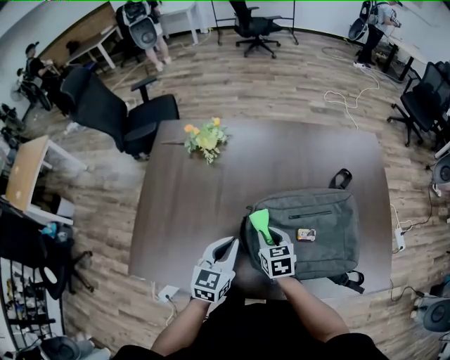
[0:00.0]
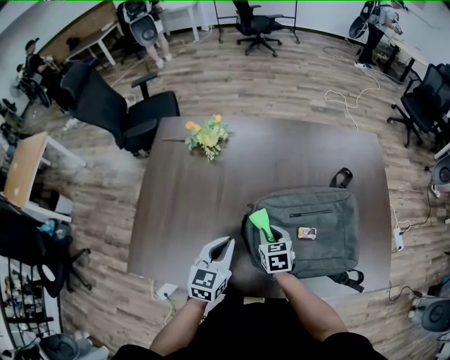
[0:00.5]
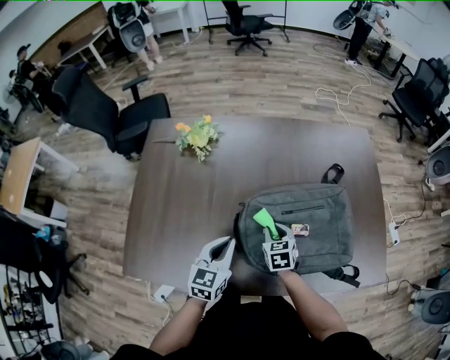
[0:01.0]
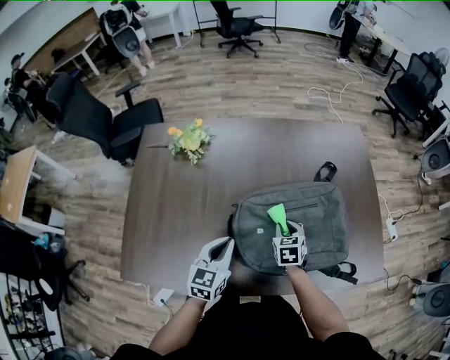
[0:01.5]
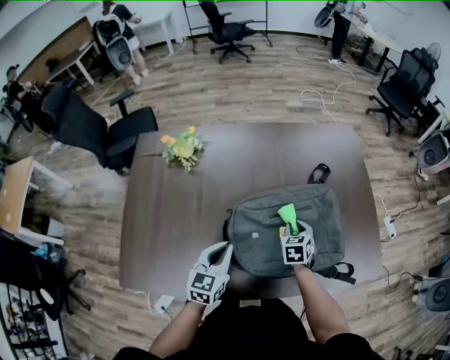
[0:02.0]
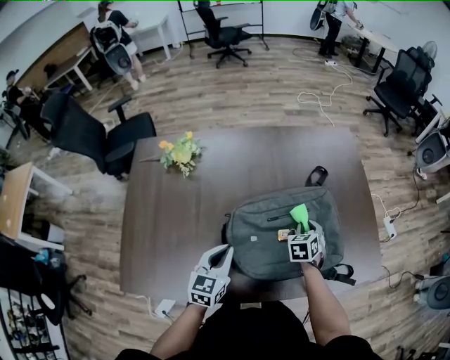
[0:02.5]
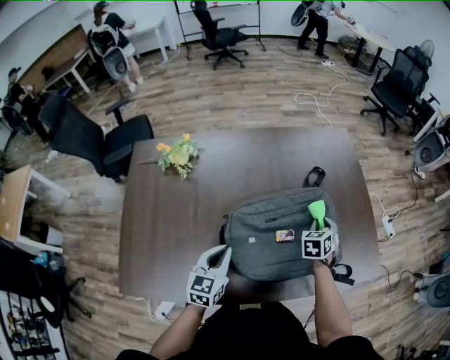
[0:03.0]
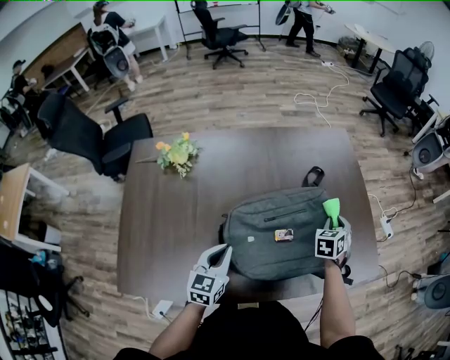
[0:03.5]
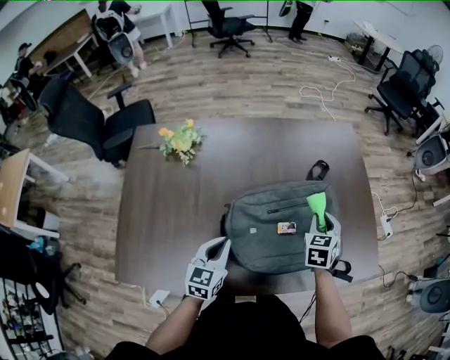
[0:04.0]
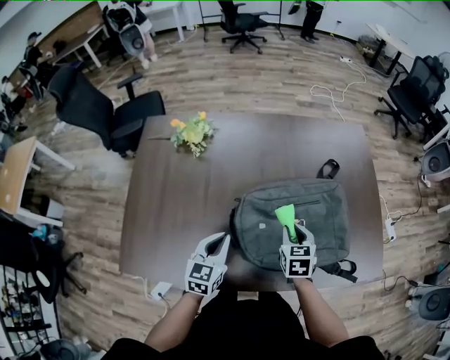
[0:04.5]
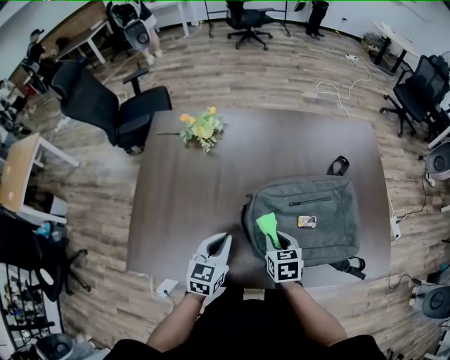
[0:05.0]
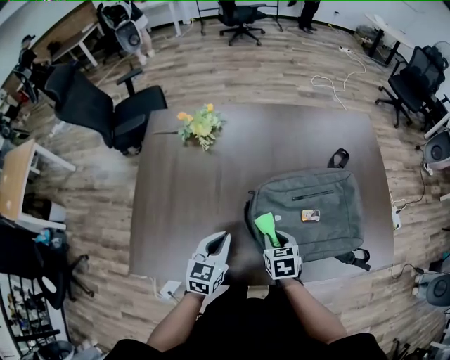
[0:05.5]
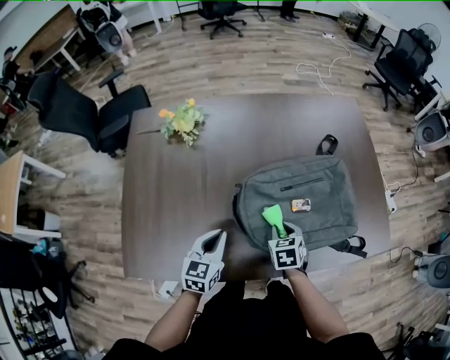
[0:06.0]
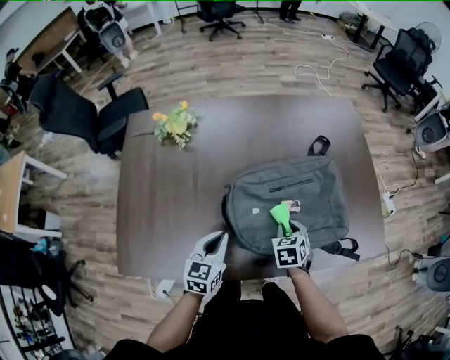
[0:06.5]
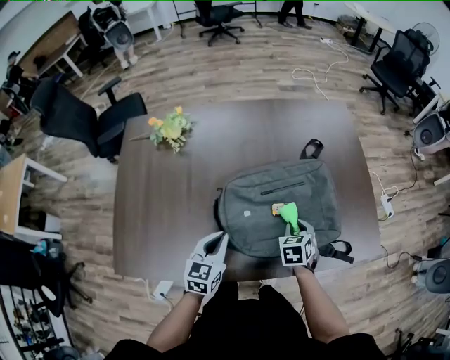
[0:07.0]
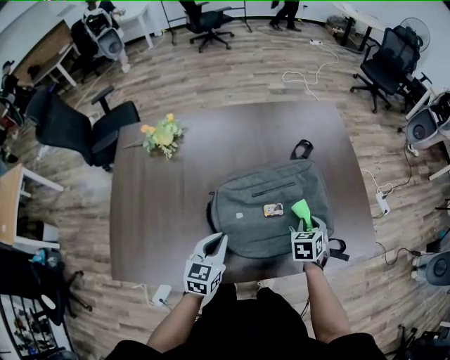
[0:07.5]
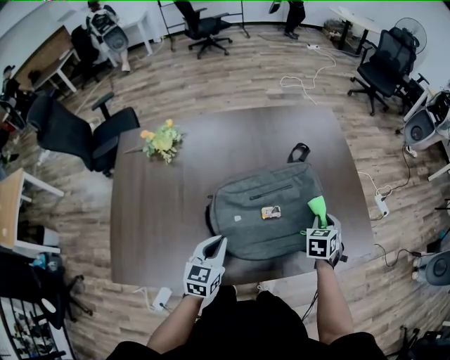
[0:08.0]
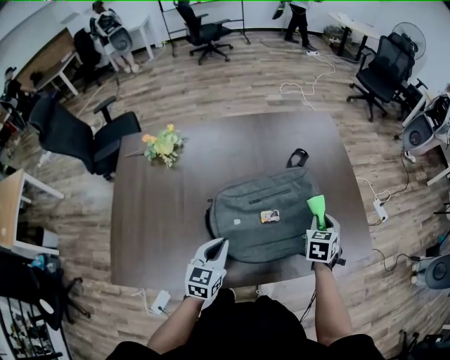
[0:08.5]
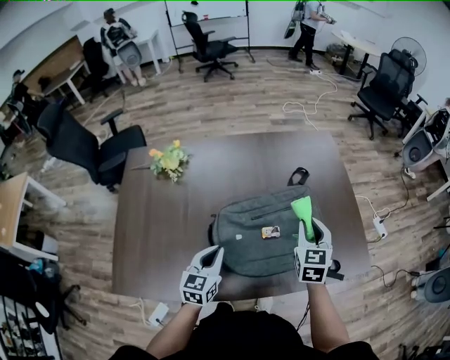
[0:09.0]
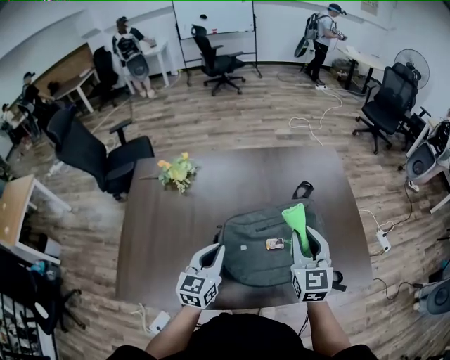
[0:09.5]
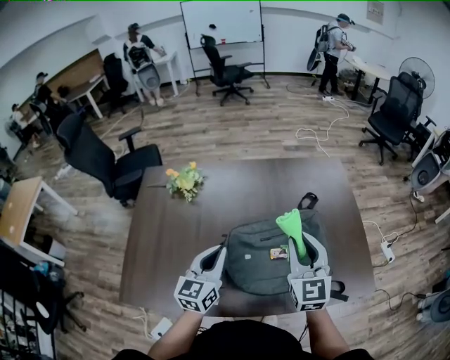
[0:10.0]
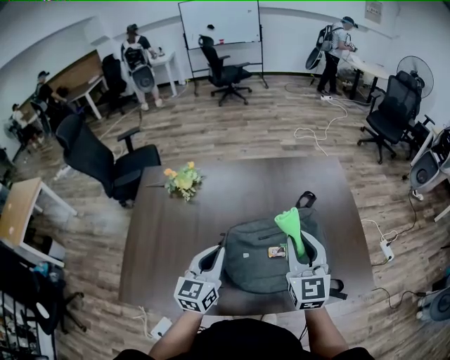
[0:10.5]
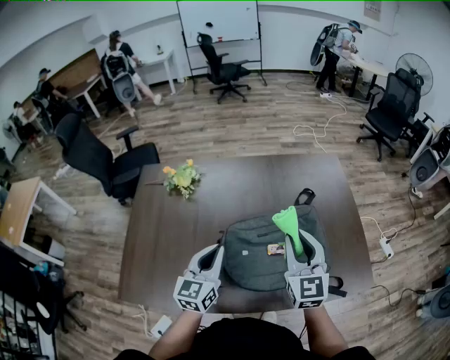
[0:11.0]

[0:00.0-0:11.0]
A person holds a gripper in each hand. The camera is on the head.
0:00.0 to 0:02.0: The right gripper goes some 15 cm to the right, and rotates some 20 degrees.
0:02.0 to 0:03.5: The right gripper moves to the right, forward and upward, some 20 cm, and swivels some 20 degrees.
0:03.5 to 0:05.5: The left gripper shifts by about 10 cm. Meanwhile the right gripper changes place by approximately 35 cm, and swivels about 40 degrees.
0:05.5 to 0:07.5: The left gripper moves to the right, approximately 10 cm. The right gripper heads to the right, covering approximately 25 cm, and turns by about 30 degrees.
0:07.5 to 0:09.0: The right gripper moves upward, approximately 15 cm, and turns by roughly 30 degrees.
0:09.0 to 0:11.0: The left gripper travels upward by approximately 10 cm; the right gripper moves upward and to the left, some 15 cm, and rotates some 30 degrees.

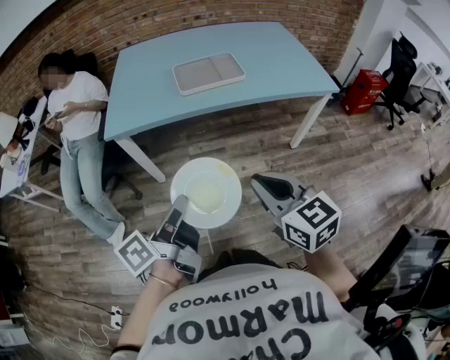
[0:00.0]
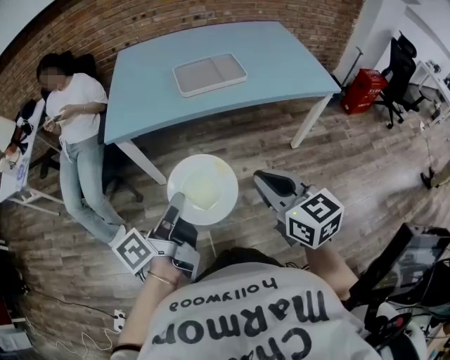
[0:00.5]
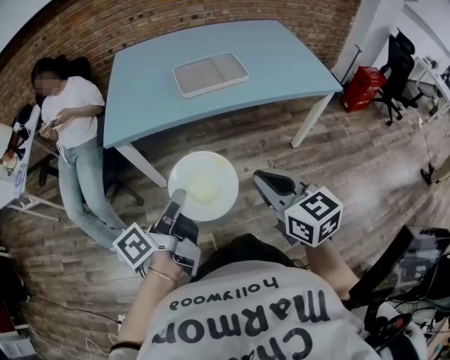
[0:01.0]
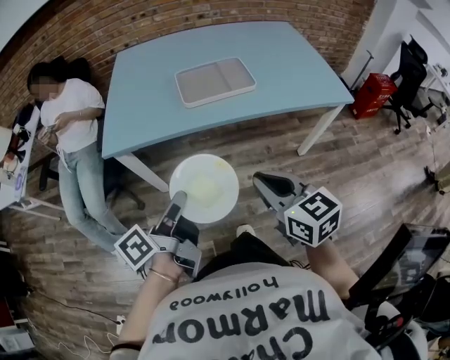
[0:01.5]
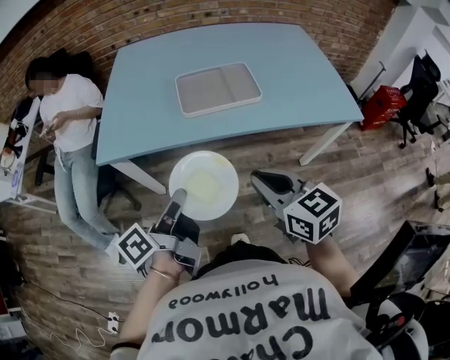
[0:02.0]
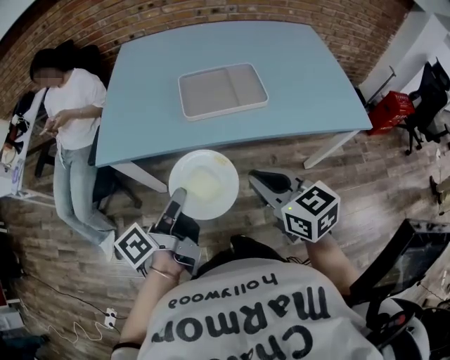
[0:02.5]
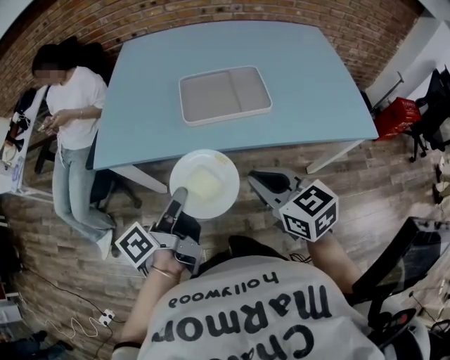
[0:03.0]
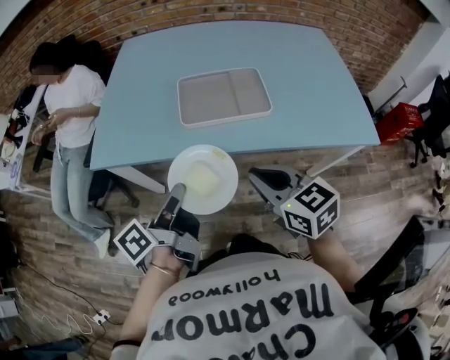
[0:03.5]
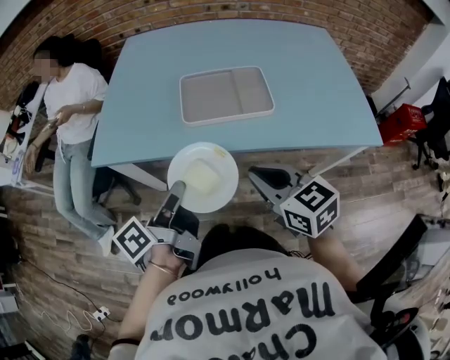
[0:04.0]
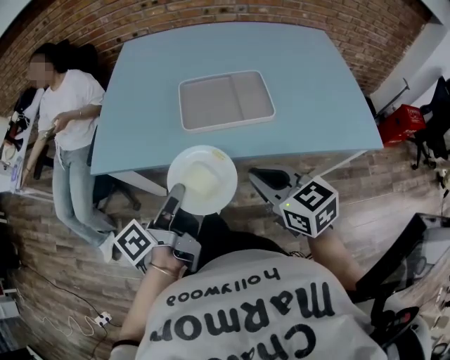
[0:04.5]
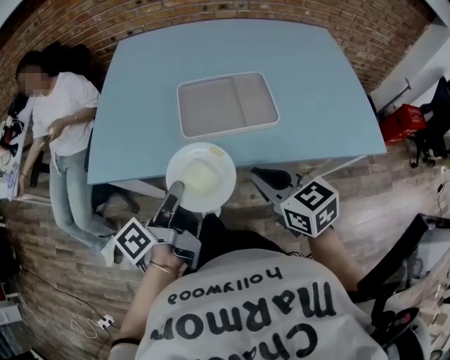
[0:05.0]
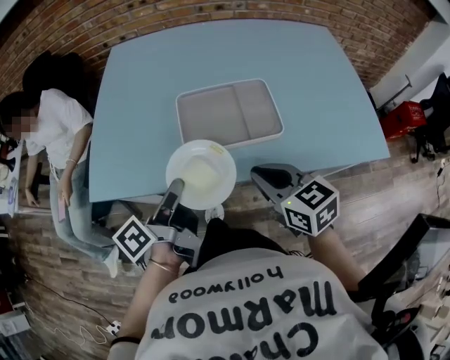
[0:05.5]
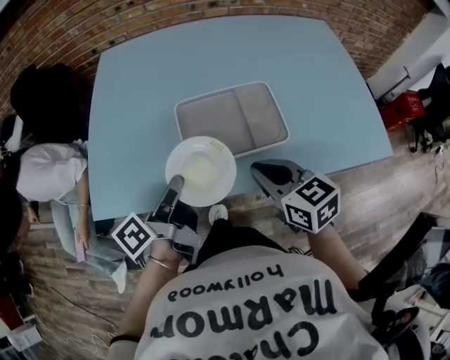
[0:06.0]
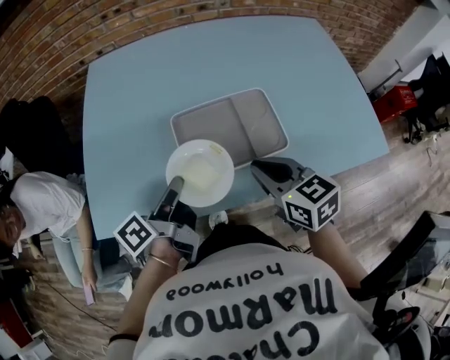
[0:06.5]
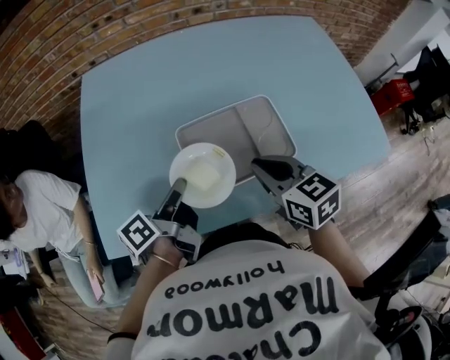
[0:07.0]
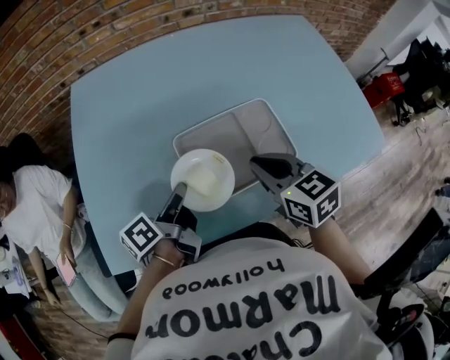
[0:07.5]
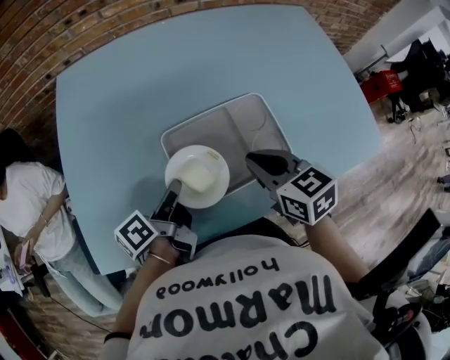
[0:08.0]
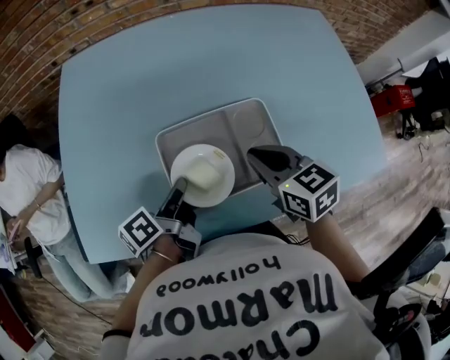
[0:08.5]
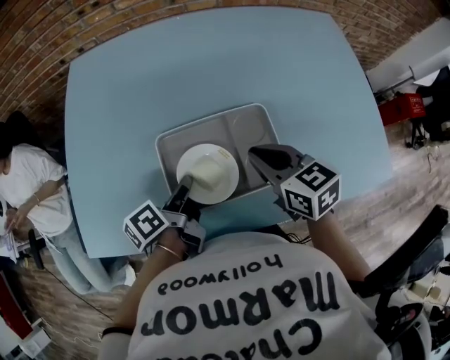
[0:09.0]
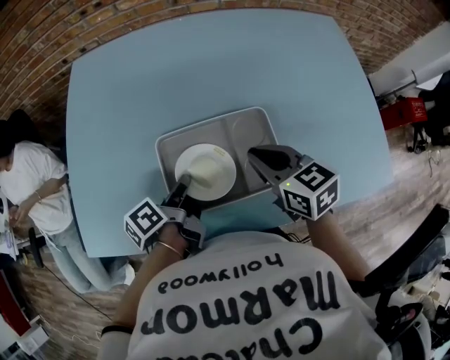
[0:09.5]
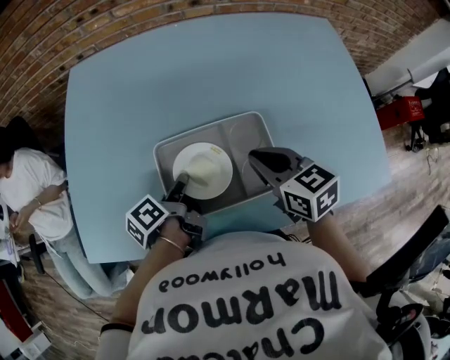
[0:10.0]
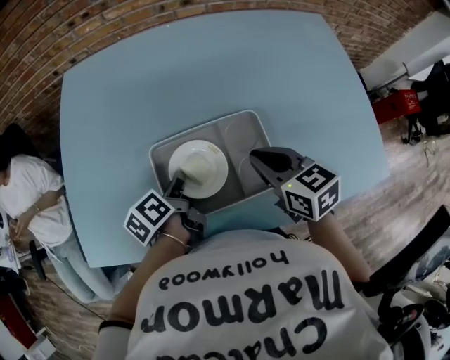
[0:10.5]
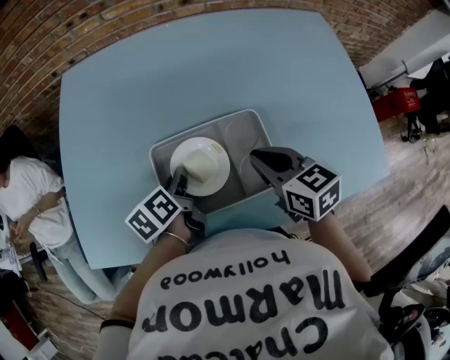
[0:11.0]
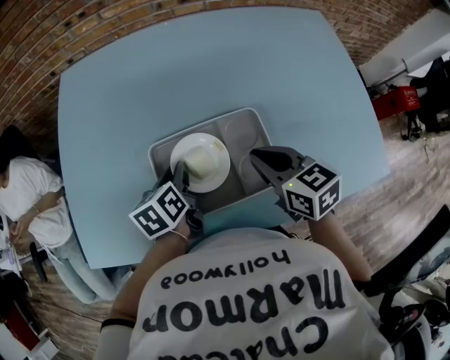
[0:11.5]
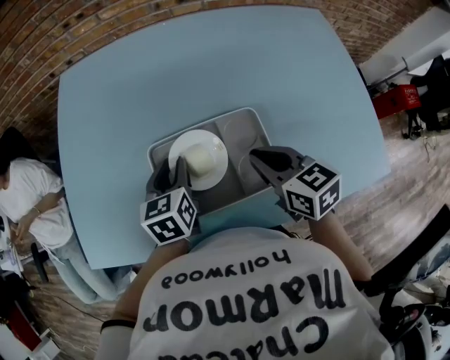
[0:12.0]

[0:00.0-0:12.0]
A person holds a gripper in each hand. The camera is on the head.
0:00.0 to 0:02.0: Both grippers move forward, about 20 cm.
0:02.0 to 0:04.0: The two grippers go some 10 cm forward.
0:04.0 to 0:06.0: The grippers both shift forward by some 20 cm.
0:06.0 to 0:08.0: The right gripper shifts approximately 10 cm forward. Meanwhile the left gripper shifts approximately 15 cm forward and downward.
0:08.0 to 0:10.0: The right gripper moves to the right and forward, about 10 cm, while the left gripper heads to the right, covering approximately 5 cm, and turns by about 20 degrees.
0:10.0 to 0:12.0: The left gripper changes place by approximately 5 cm, and rolls clockwise, seen from behind, by roughly 60 degrees.

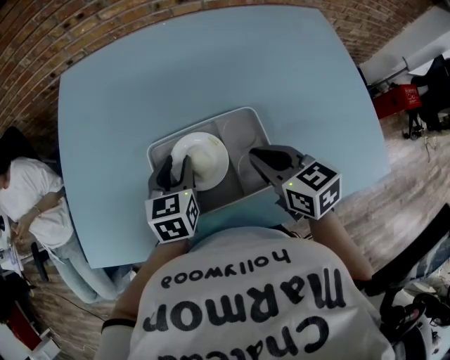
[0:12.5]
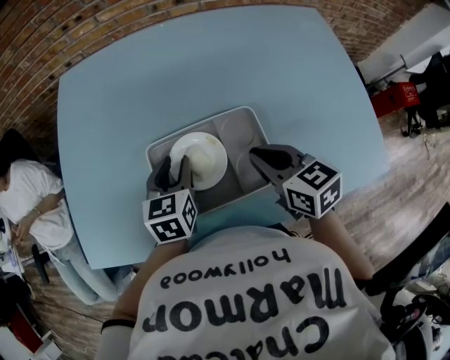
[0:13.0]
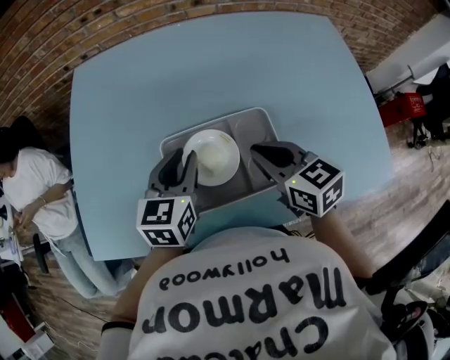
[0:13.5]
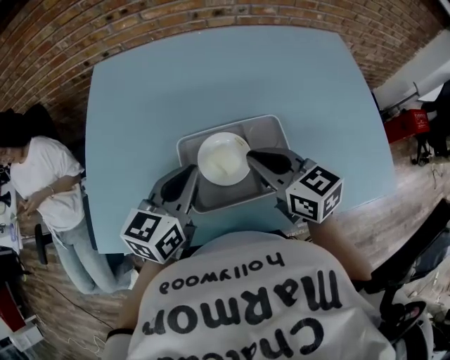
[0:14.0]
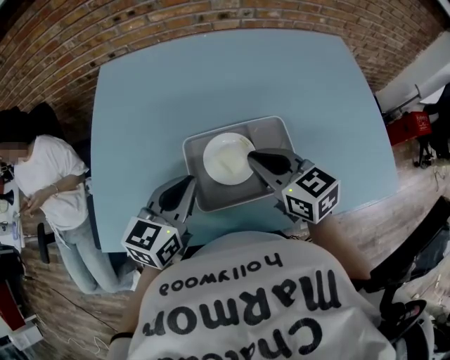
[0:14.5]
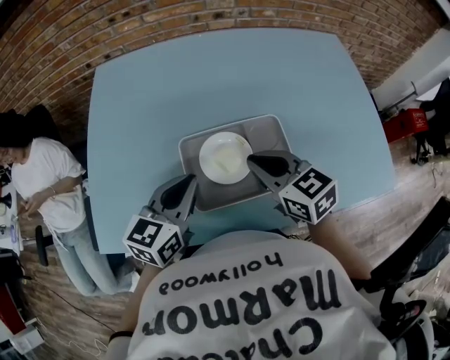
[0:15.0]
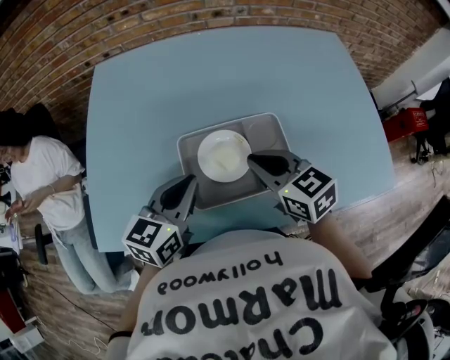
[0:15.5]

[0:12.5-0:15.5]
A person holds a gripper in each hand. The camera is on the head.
0:12.5 to 0:14.0: The left gripper is displaced upward and backward by about 15 cm, turns by approximately 20 degrees, and closes up. The right gripper heads to the left and upward, covering roughly 10 cm.
0:14.0 to 0:15.5: The grippers make only small movements.
